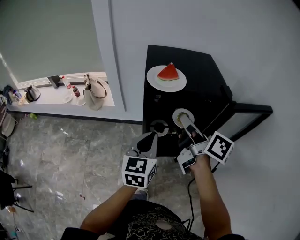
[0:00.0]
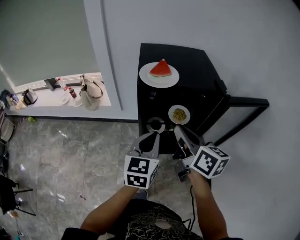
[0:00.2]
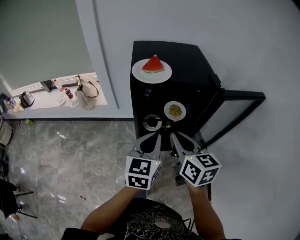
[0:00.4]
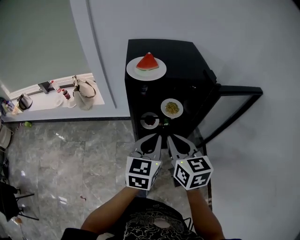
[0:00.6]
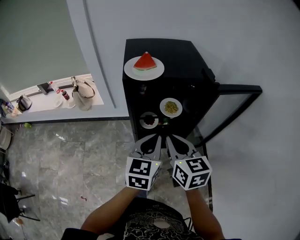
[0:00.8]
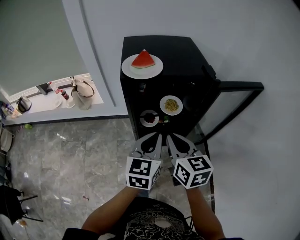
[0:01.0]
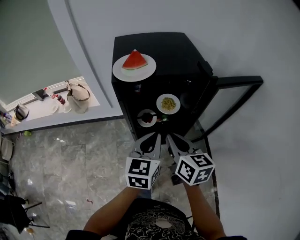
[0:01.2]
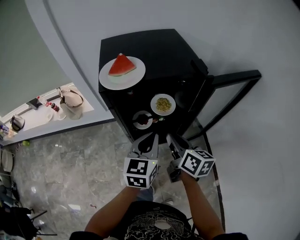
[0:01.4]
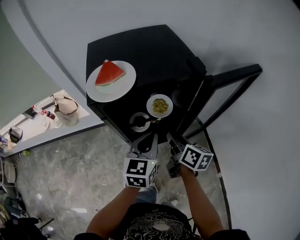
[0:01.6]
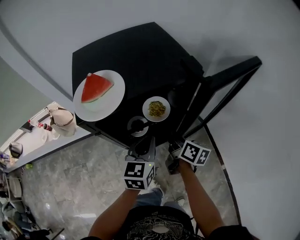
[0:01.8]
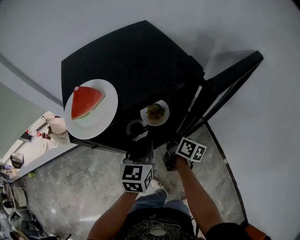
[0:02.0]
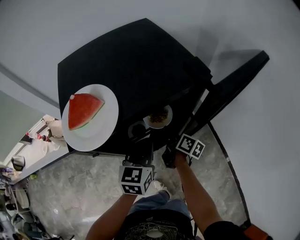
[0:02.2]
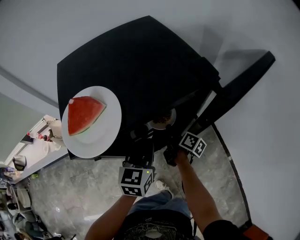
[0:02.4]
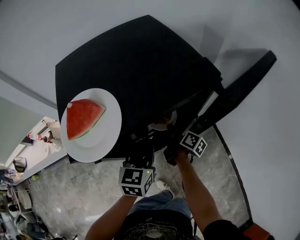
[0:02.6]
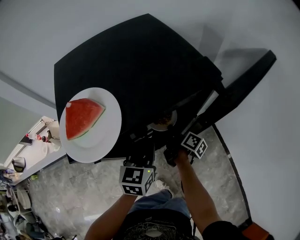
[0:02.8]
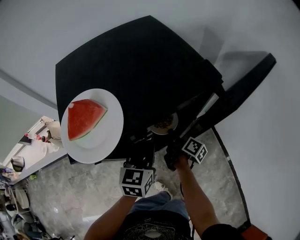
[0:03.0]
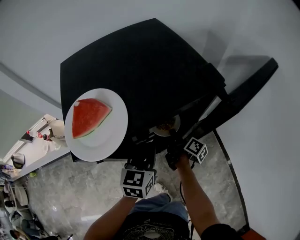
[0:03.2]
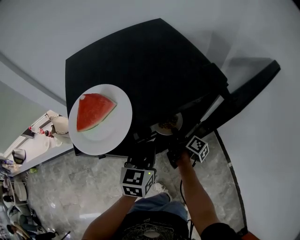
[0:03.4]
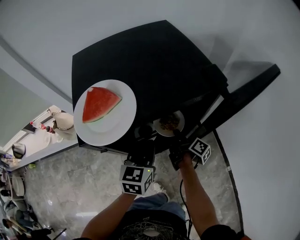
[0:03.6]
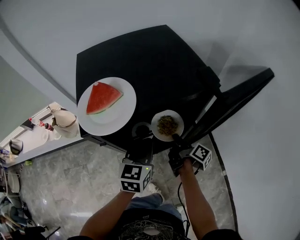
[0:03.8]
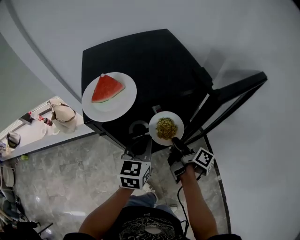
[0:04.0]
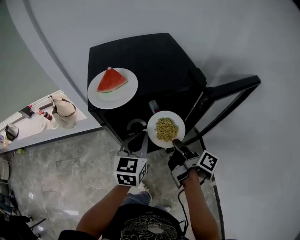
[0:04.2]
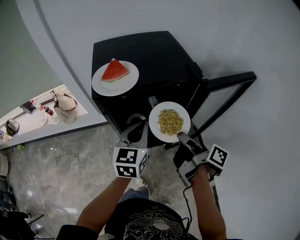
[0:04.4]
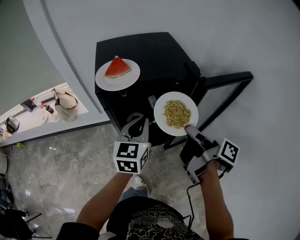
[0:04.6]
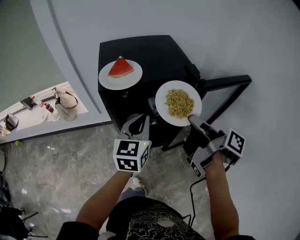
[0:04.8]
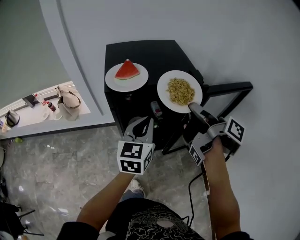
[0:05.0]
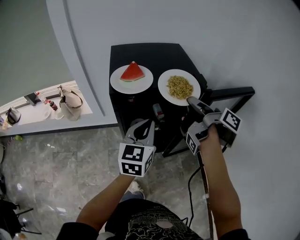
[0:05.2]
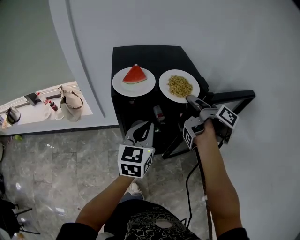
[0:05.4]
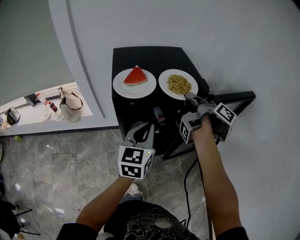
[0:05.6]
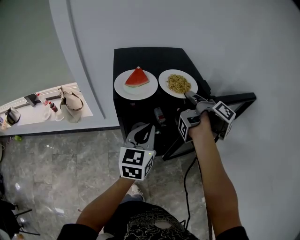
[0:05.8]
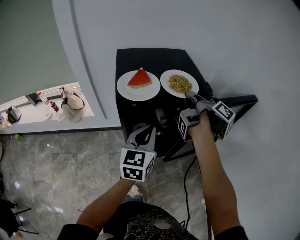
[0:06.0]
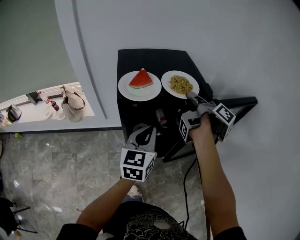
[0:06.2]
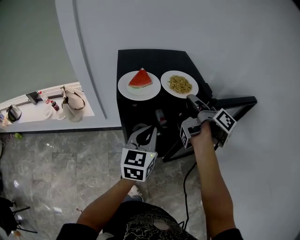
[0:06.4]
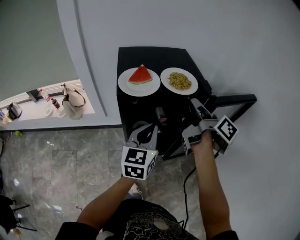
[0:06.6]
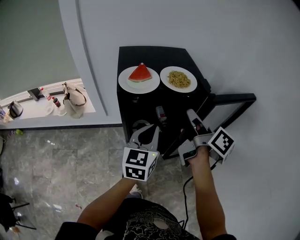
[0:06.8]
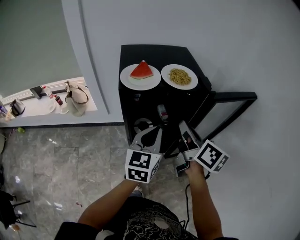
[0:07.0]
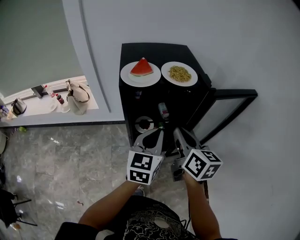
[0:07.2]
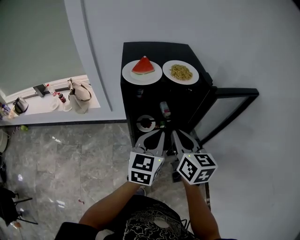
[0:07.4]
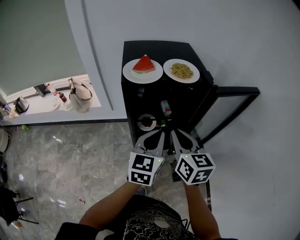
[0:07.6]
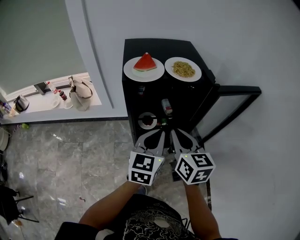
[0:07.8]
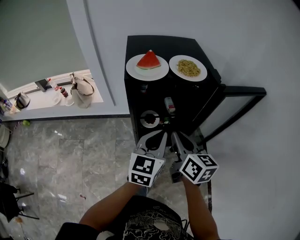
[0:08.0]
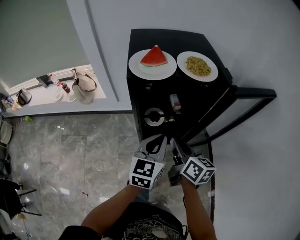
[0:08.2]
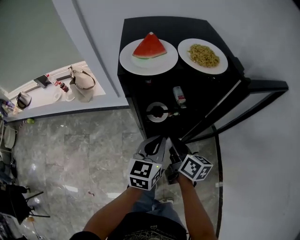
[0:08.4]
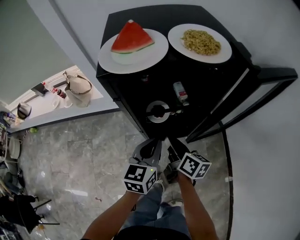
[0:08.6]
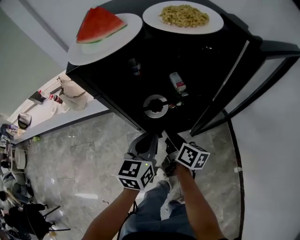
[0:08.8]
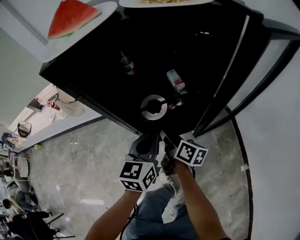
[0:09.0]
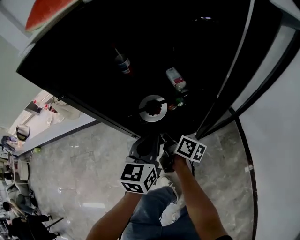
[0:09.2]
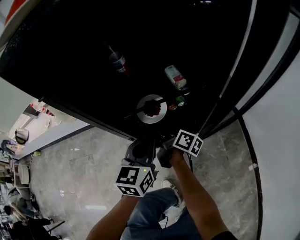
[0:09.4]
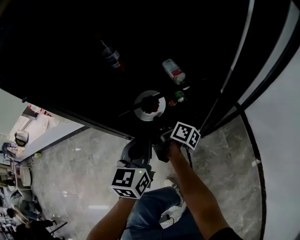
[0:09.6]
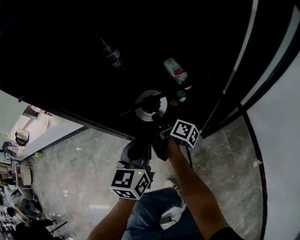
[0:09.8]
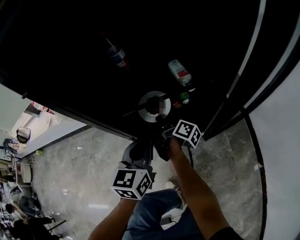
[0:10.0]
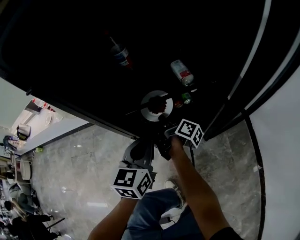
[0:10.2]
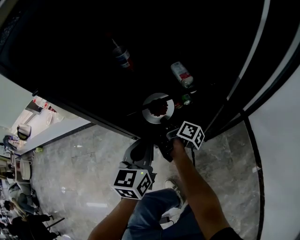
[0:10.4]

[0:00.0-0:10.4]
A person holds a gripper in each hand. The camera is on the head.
0:00.0 to 0:01.4: The left gripper shifts by about 10 cm.
0:01.4 to 0:03.0: The left gripper ends up roughly 15 cm from where it was.
0:03.0 to 0:04.4: The left gripper shifts about 10 cm upward.
0:04.4 to 0:06.0: The left gripper changes place by about 5 cm.
0:06.0 to 0:07.4: The left gripper ends up about 10 cm from where it was.
0:07.4 to 0:09.0: The left gripper goes about 25 cm downward.
0:09.0 to 0:10.4: The left gripper moves downward, roughly 10 cm.

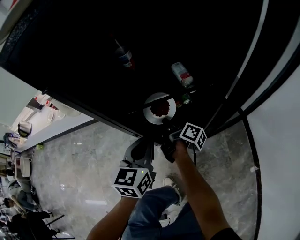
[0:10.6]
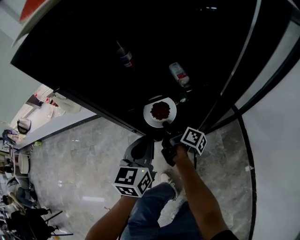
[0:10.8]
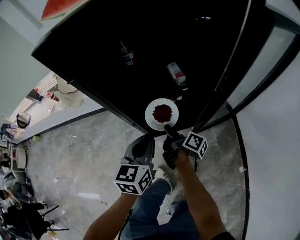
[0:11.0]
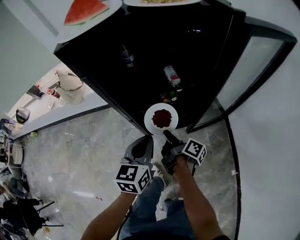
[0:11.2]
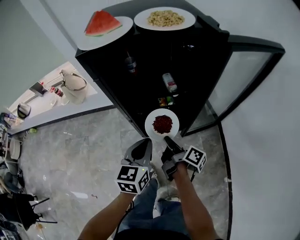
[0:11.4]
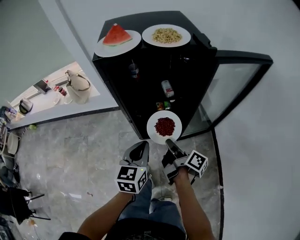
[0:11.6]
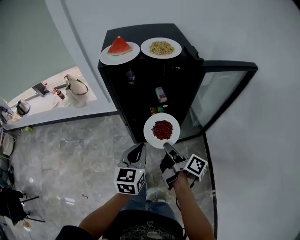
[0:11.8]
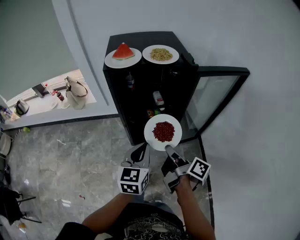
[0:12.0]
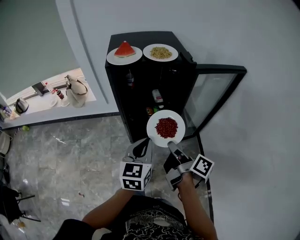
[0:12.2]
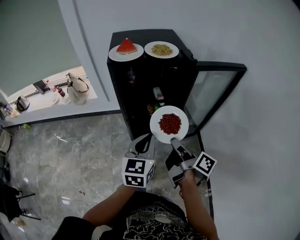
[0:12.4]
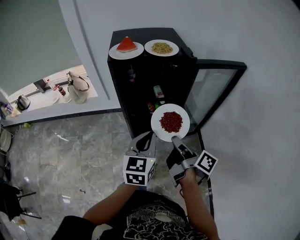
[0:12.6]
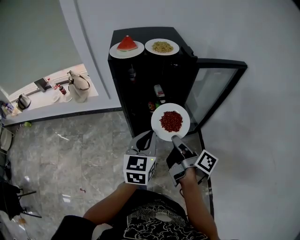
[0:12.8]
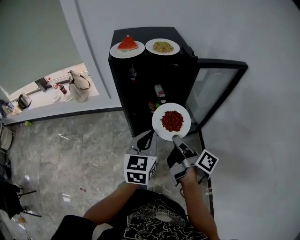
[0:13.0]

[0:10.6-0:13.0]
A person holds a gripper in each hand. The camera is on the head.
0:10.6 to 0:11.8: The left gripper is displaced upward by roughly 20 cm.
0:11.8 to 0:13.0: The left gripper is displaced upward by some 5 cm.

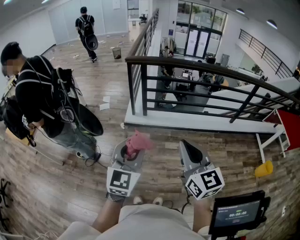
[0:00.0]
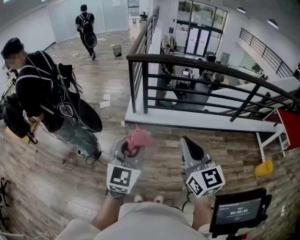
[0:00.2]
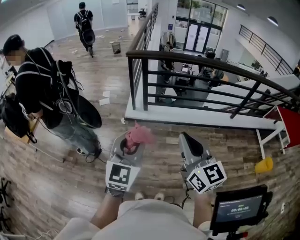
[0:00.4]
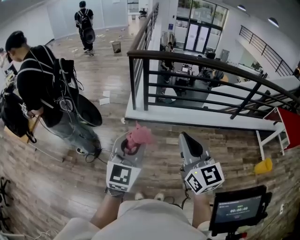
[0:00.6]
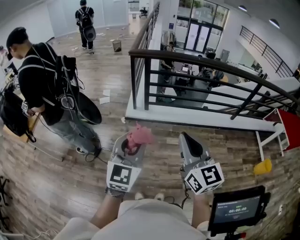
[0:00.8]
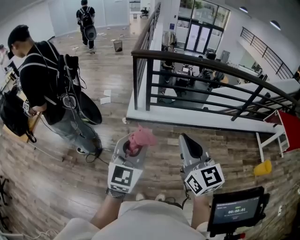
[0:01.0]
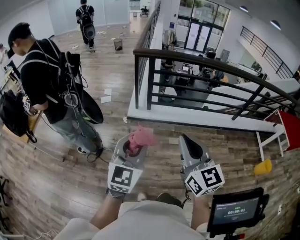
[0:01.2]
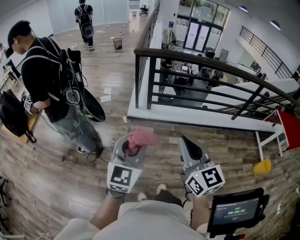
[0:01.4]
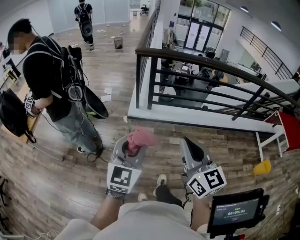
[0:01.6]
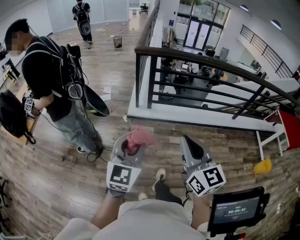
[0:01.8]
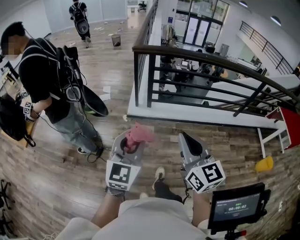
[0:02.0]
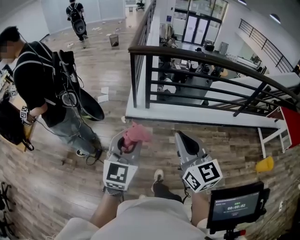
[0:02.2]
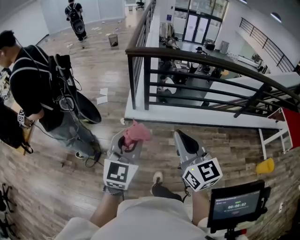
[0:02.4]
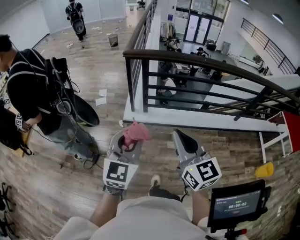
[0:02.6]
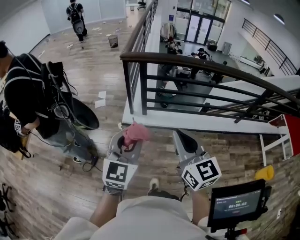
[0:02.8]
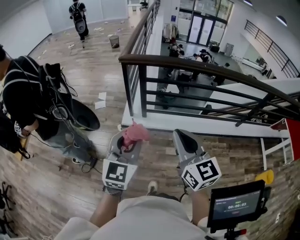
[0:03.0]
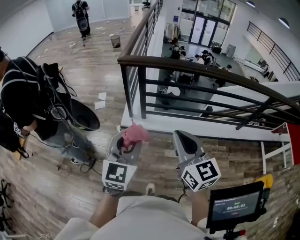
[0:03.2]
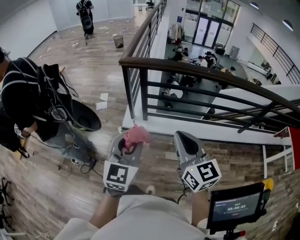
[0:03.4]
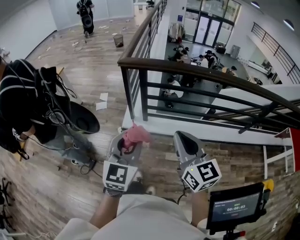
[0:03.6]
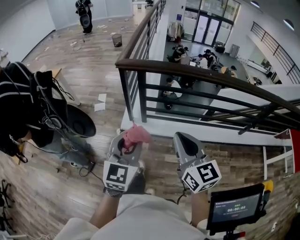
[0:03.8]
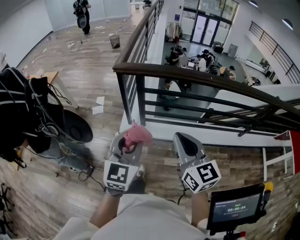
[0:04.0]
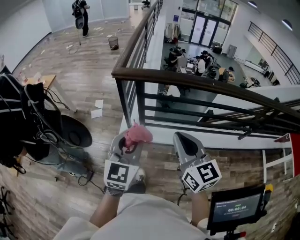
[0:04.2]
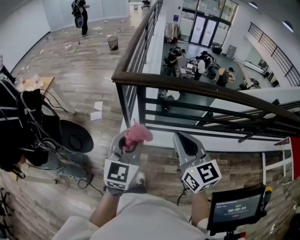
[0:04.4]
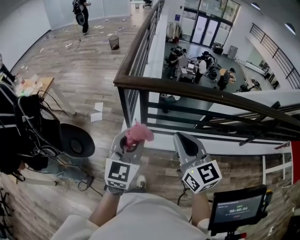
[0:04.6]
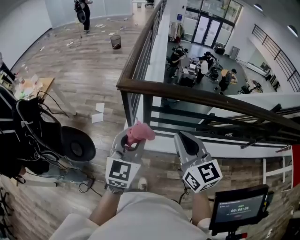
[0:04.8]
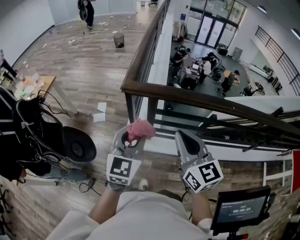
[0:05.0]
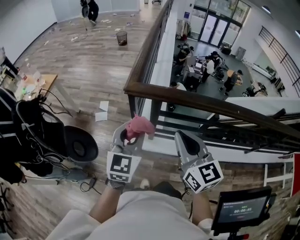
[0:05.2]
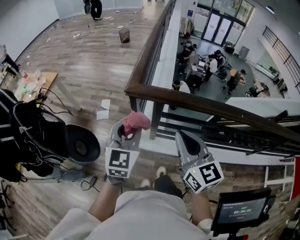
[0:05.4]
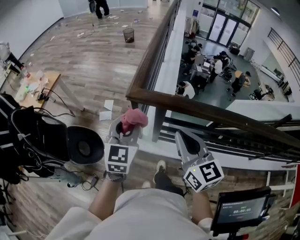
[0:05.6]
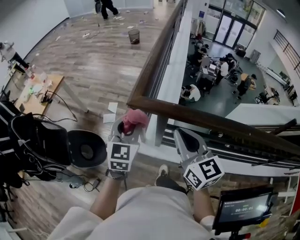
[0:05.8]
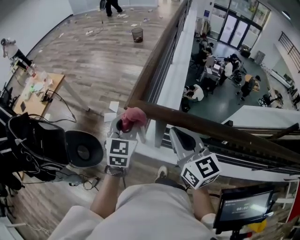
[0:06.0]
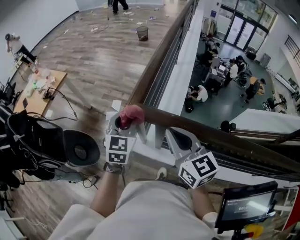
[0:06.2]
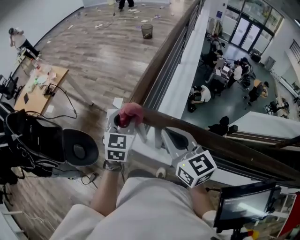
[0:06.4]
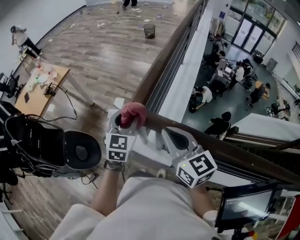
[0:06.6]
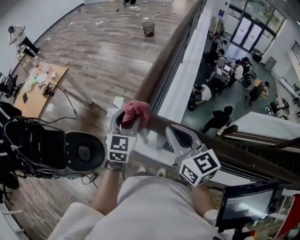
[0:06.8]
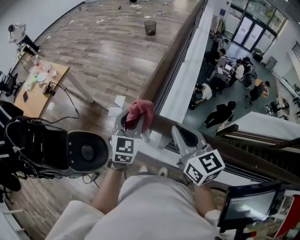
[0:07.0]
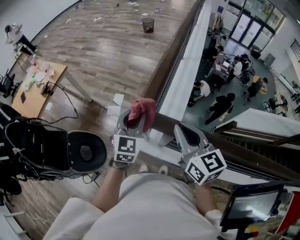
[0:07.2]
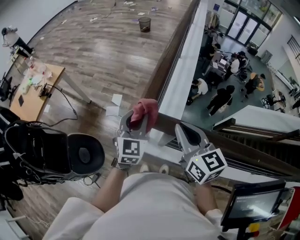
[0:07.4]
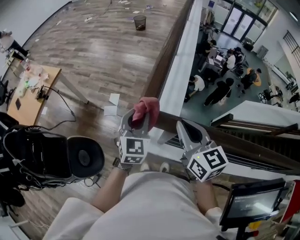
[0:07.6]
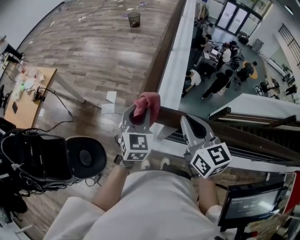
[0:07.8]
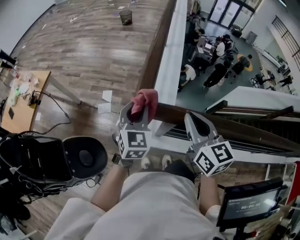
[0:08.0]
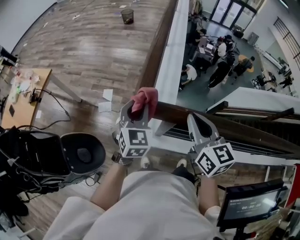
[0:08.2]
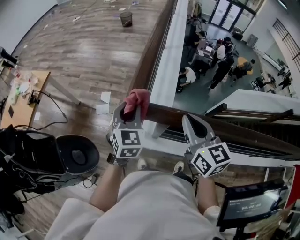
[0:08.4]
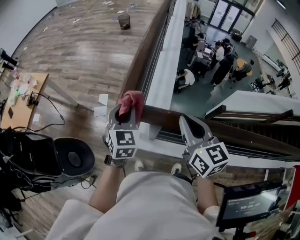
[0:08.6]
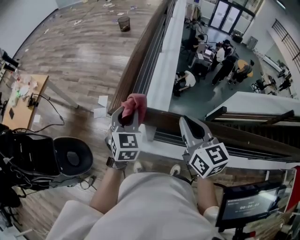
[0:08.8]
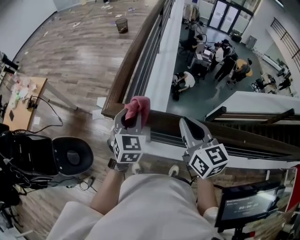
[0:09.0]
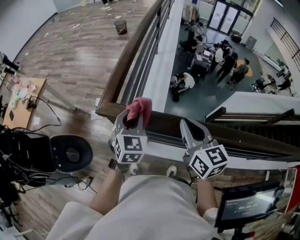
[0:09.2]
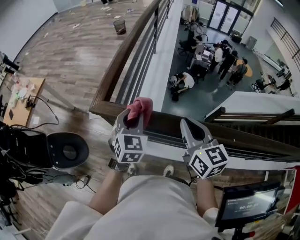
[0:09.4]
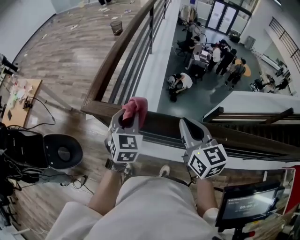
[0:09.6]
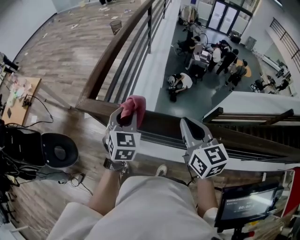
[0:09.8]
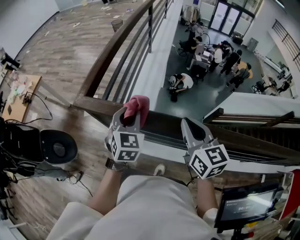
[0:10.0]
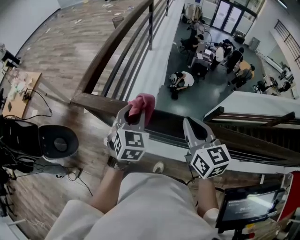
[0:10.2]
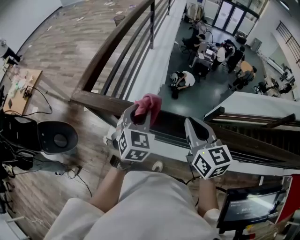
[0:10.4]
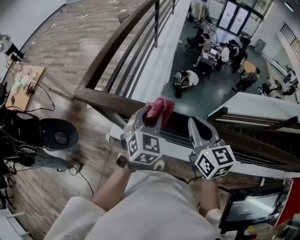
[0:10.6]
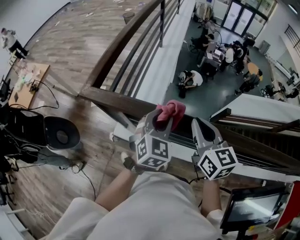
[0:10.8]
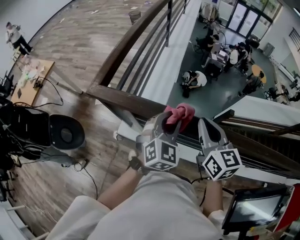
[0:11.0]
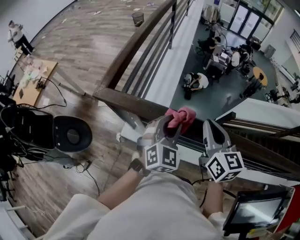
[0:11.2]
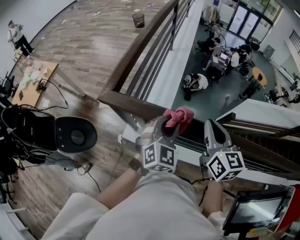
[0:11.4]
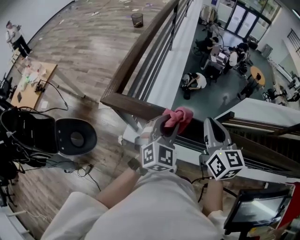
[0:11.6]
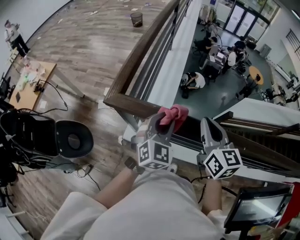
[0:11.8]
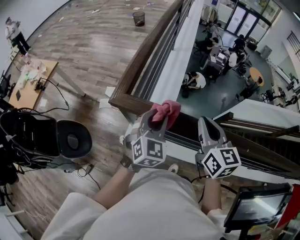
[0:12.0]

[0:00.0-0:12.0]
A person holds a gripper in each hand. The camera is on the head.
0:00.0 to 0:01.6: The two grippers go some 10 cm to the left.
0:01.6 to 0:03.0: Both grippers move forward, roughly 20 cm.
0:03.0 to 0:04.4: The two grippers go some 20 cm forward.
0:04.4 to 0:06.0: Both grippers travel together forward, about 25 cm. The left gripper rotates some 20 degrees.
0:06.0 to 0:07.6: The two grippers go roughly 10 cm forward. The left gripper opens and closes again.
0:07.6 to 0:09.0: The two grippers go roughly 10 cm to the right.
0:09.0 to 0:10.4: The grippers both shift to the right by approximately 15 cm.
0:10.4 to 0:12.0: Both grippers travel together to the left, approximately 10 cm.
